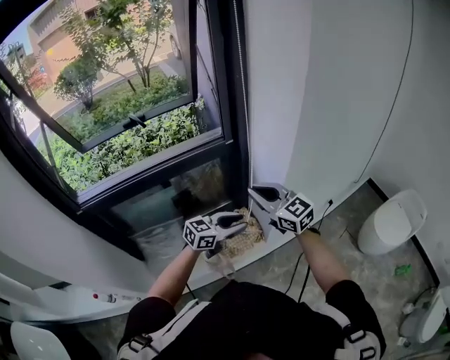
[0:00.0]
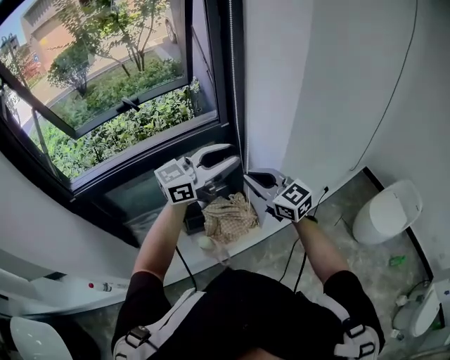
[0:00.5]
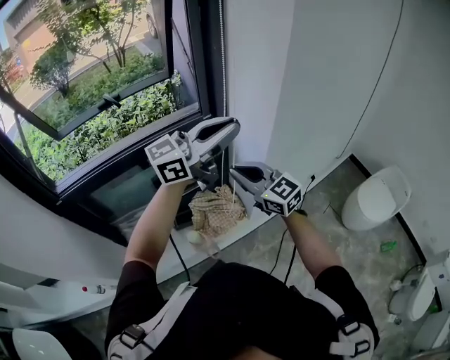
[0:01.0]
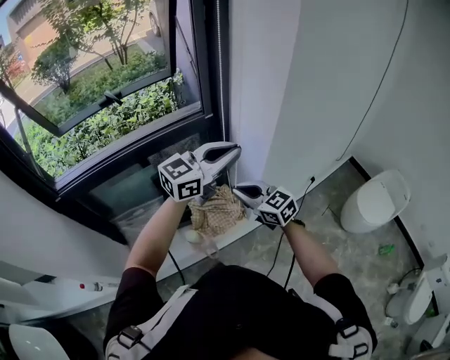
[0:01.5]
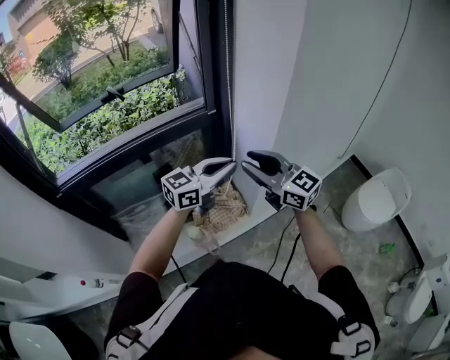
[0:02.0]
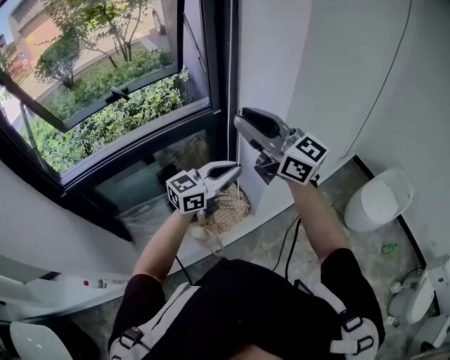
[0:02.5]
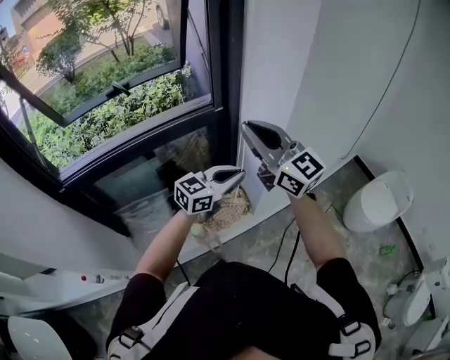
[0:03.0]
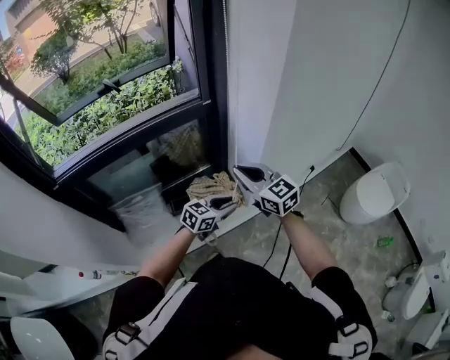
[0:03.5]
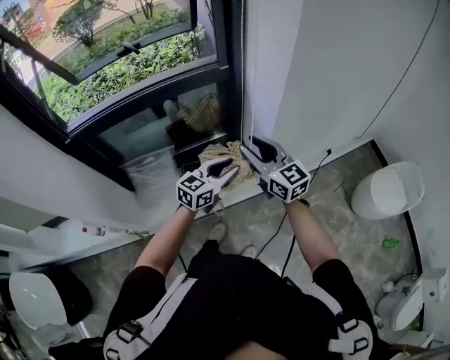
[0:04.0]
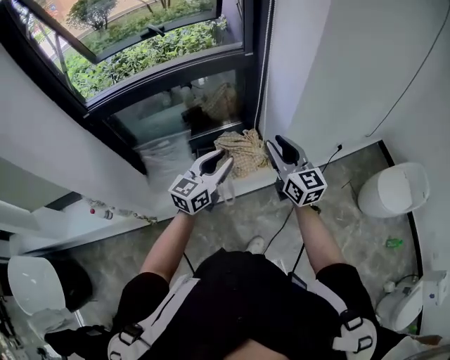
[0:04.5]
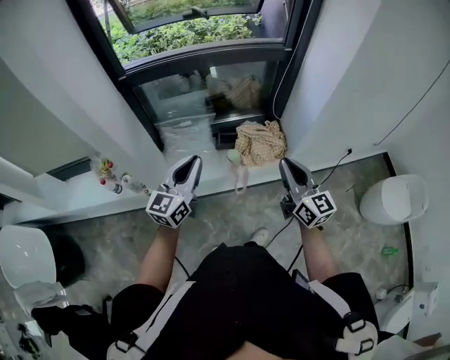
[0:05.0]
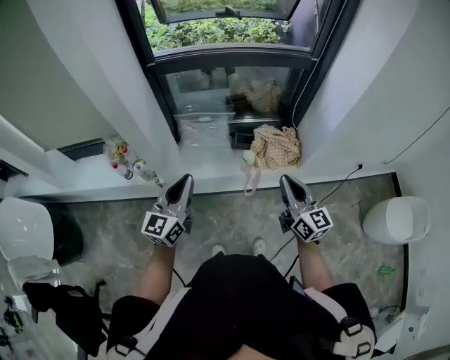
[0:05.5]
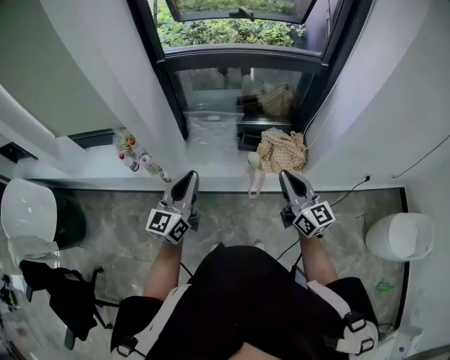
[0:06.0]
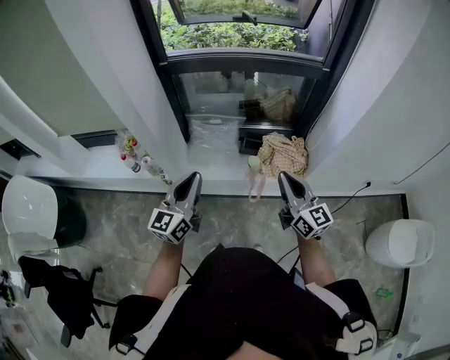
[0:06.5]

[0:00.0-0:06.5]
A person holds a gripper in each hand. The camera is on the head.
0:00.0 to 0:02.0: The left gripper moves upward, approximately 15 cm, and closes, while the right gripper moves roughly 10 cm downward and comes back, and opens up.
0:02.0 to 0:04.5: The right gripper moves downward and backward, roughly 15 cm, and closes and opens again; the left gripper is displaced backward, downward and to the left by some 20 cm, swivels roughly 30 degrees, and opens its fingers.
0:04.5 to 0:06.5: The left gripper shifts by about 30 cm, changes its angle by about 40 degrees, and closes. The right gripper changes place by some 20 cm, rotates some 20 degrees, and closes.

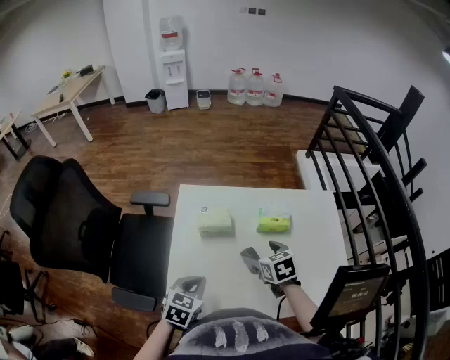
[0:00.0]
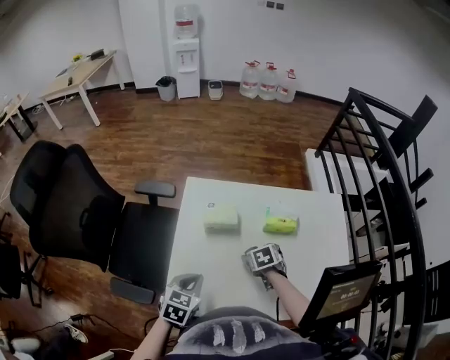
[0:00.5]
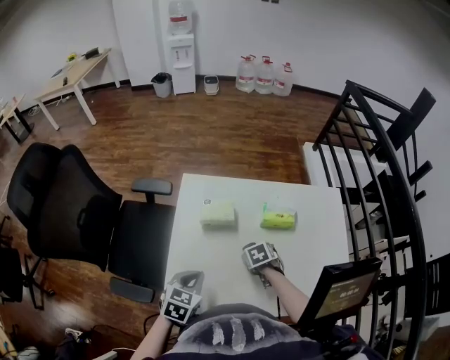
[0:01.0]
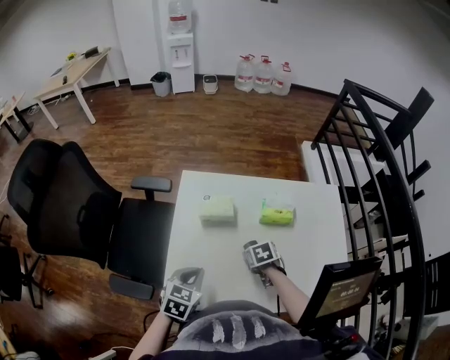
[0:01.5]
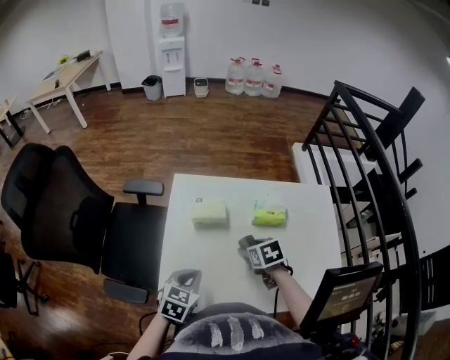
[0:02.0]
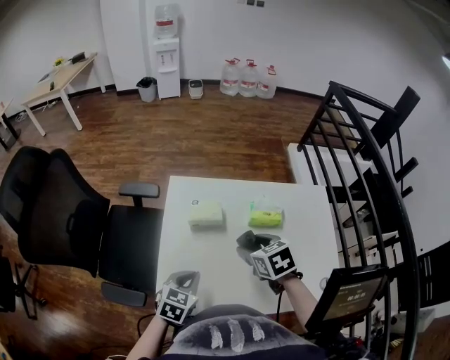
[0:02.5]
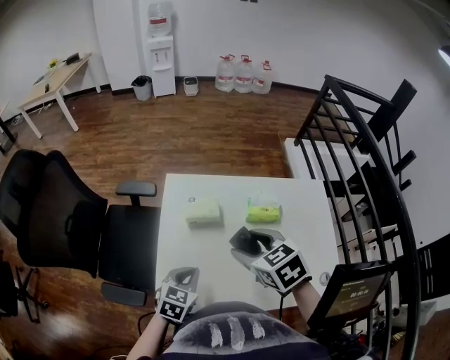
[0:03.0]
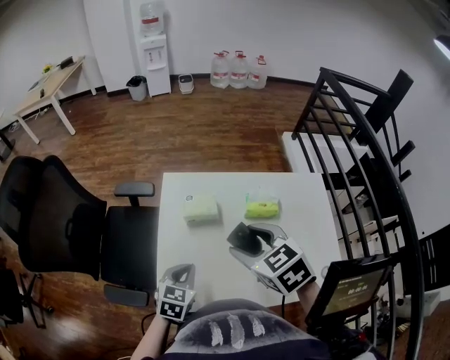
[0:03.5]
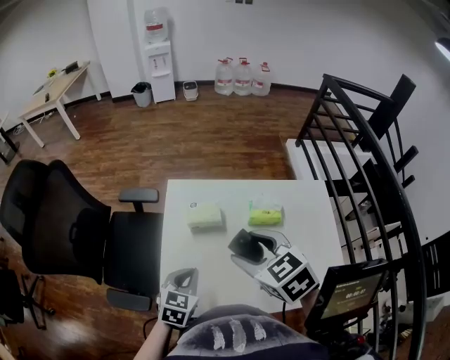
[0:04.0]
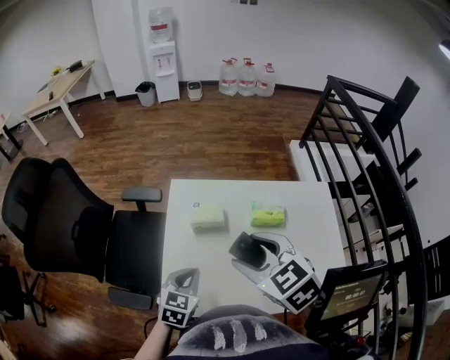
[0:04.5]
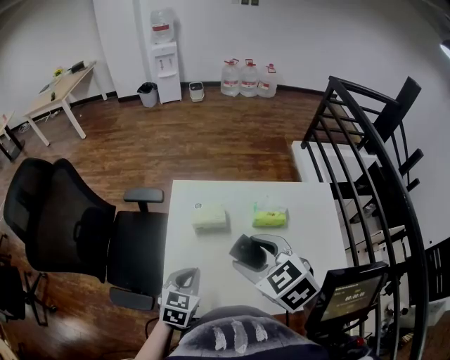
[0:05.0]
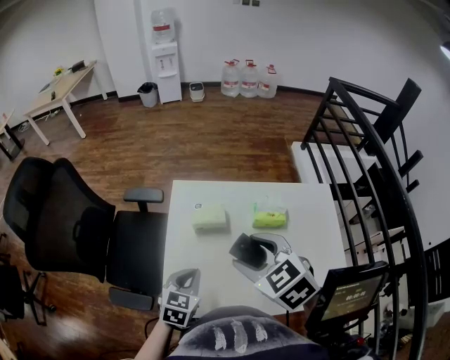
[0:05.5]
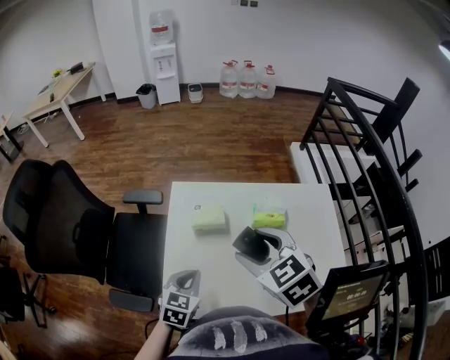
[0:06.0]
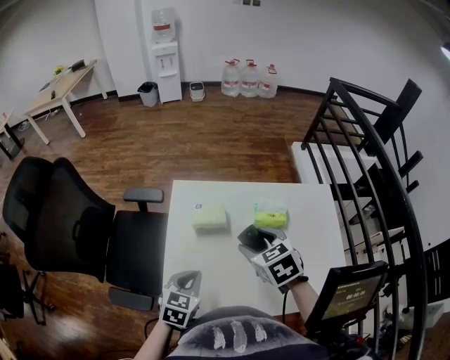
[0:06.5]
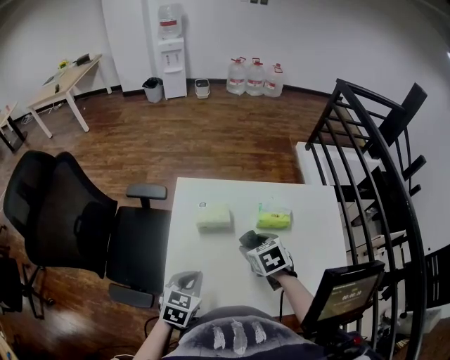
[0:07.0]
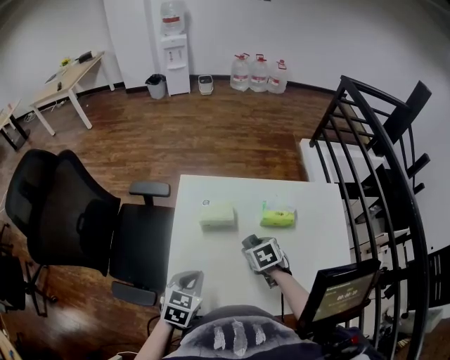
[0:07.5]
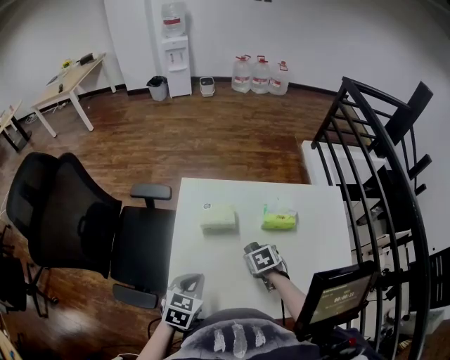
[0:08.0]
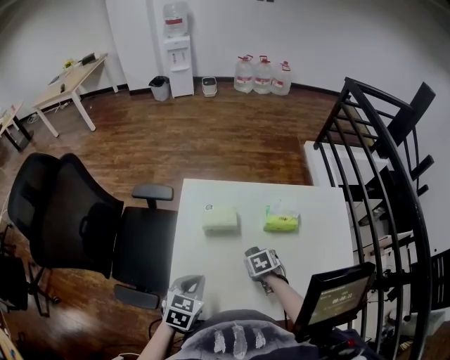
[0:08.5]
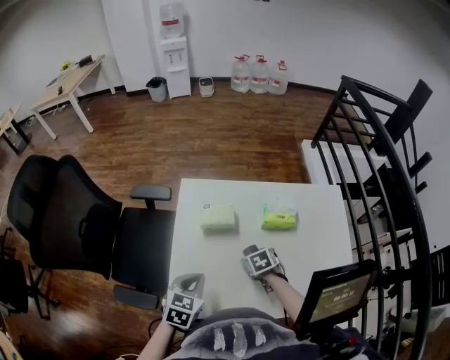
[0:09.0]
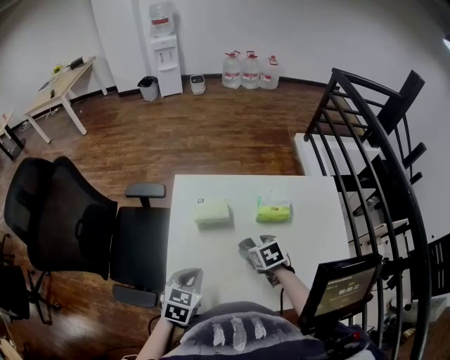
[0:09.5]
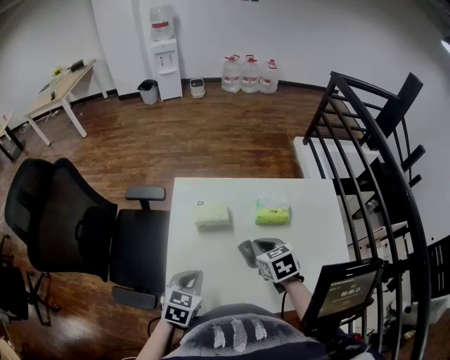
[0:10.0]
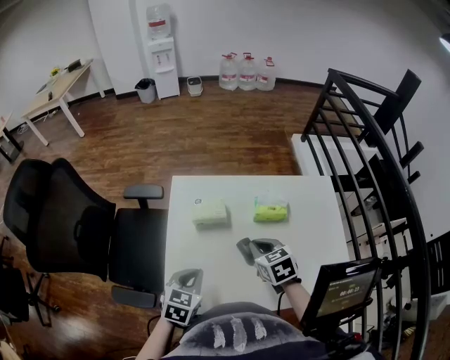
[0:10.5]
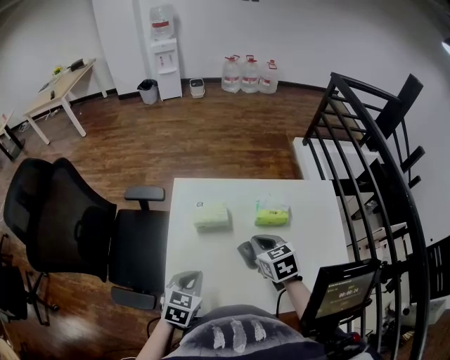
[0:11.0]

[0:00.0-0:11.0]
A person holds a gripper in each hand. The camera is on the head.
0:00.0 to 0:02.0: The right gripper travels downward and back again, about 15 cm each way.
0:02.0 to 0:03.5: The right gripper goes approximately 20 cm upward, and rotates some 30 degrees.
0:03.5 to 0:05.5: The grippers move only a little.
0:05.5 to 0:07.5: The right gripper is displaced downward by some 25 cm, and changes its angle by some 30 degrees.
0:07.5 to 0:09.0: The right gripper travels downward by roughly 5 cm.
0:09.0 to 0:11.0: The right gripper is displaced upward by approximately 15 cm, swivels approximately 30 degrees, and closes its fingers.

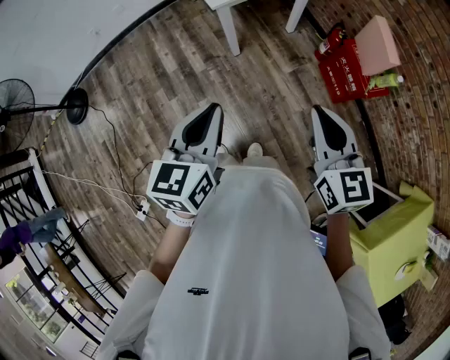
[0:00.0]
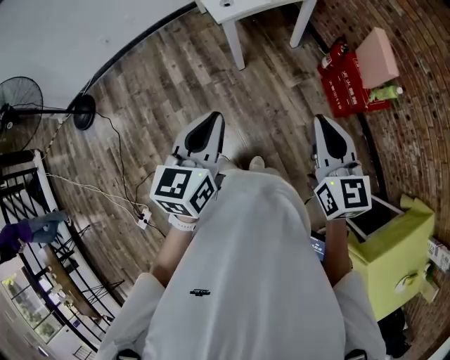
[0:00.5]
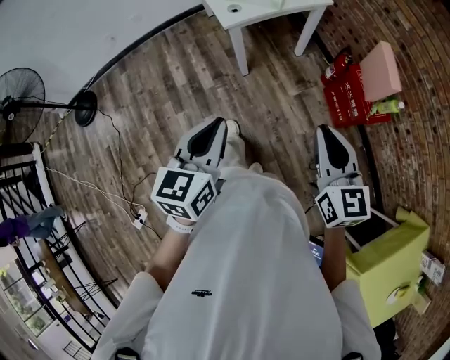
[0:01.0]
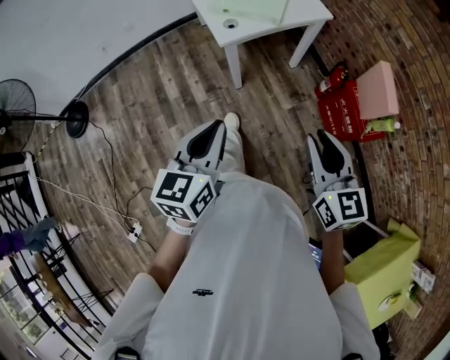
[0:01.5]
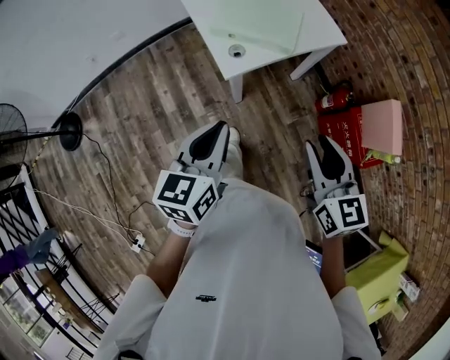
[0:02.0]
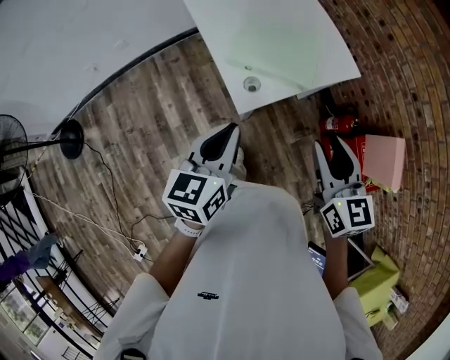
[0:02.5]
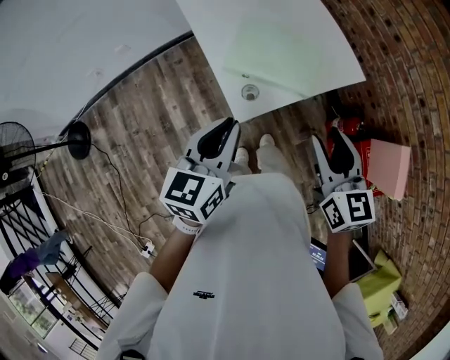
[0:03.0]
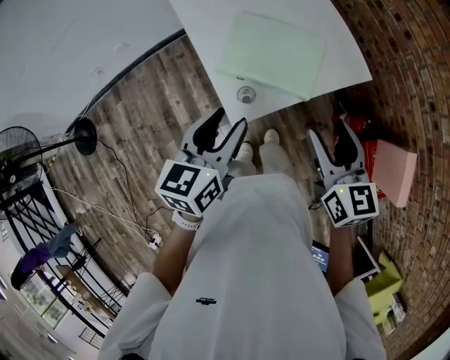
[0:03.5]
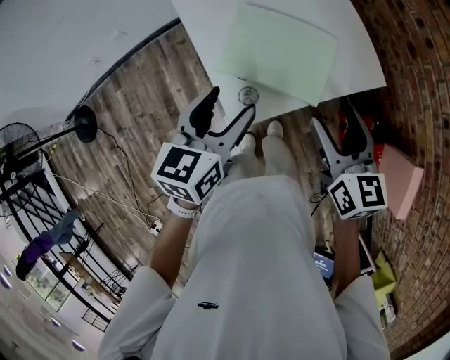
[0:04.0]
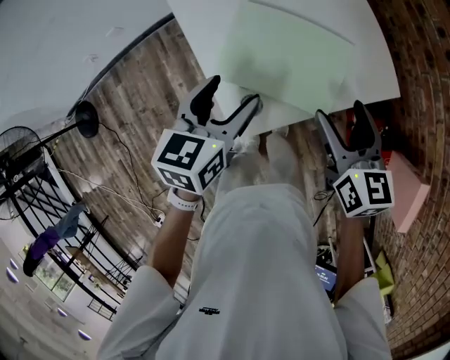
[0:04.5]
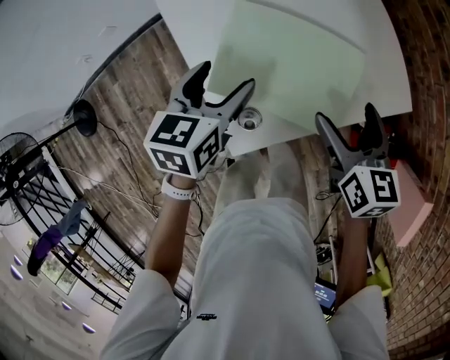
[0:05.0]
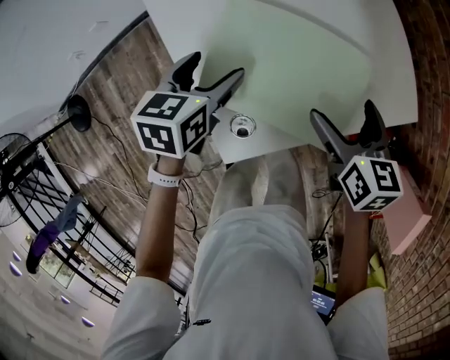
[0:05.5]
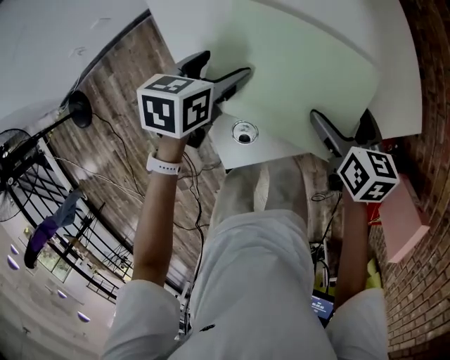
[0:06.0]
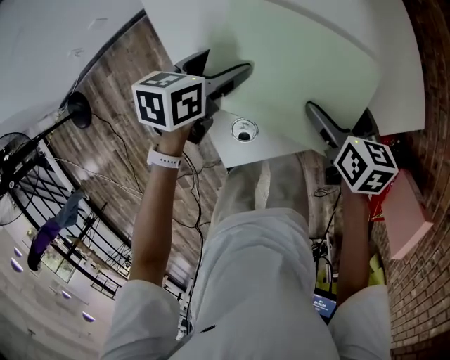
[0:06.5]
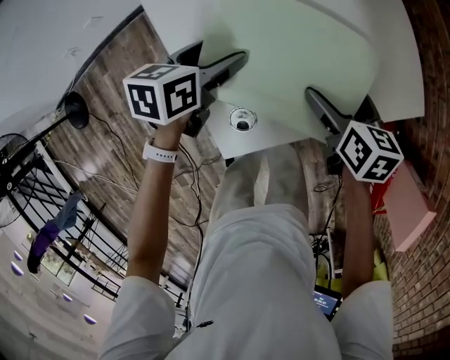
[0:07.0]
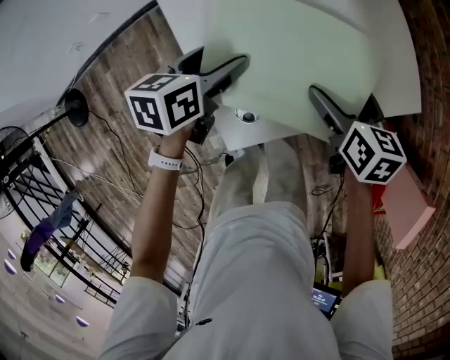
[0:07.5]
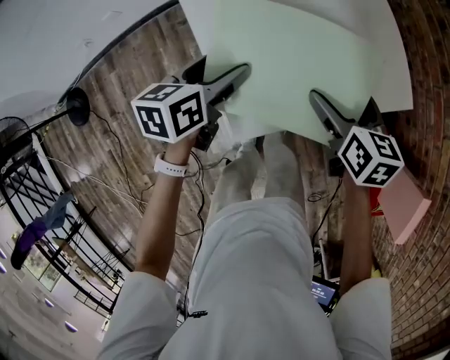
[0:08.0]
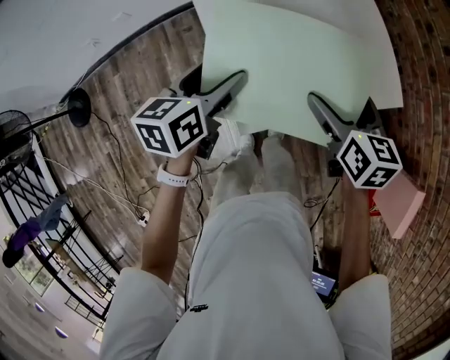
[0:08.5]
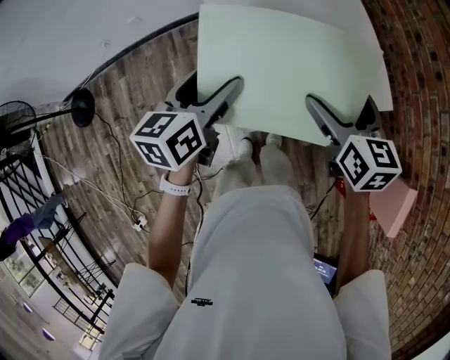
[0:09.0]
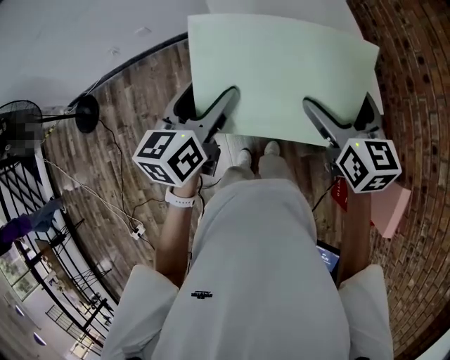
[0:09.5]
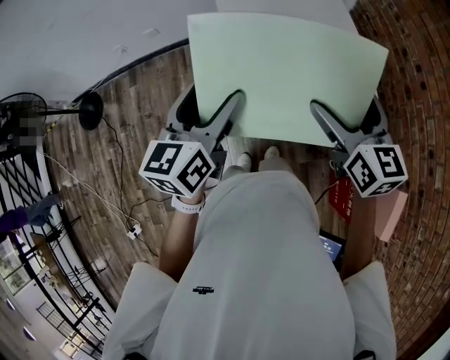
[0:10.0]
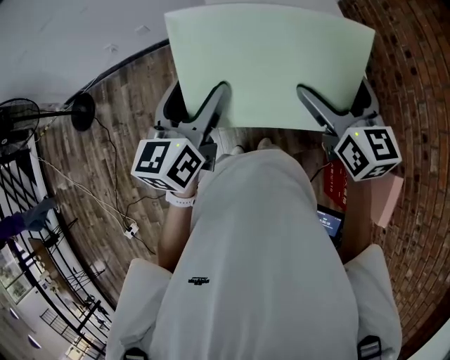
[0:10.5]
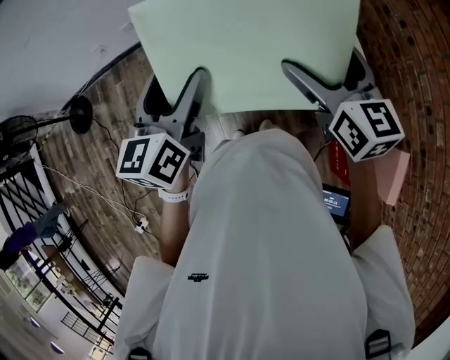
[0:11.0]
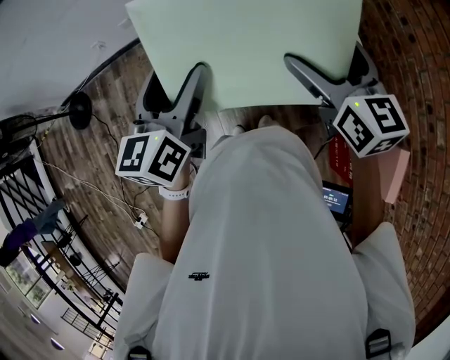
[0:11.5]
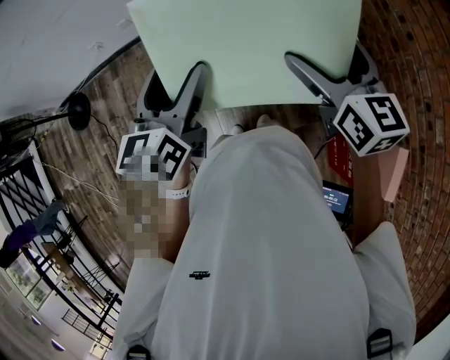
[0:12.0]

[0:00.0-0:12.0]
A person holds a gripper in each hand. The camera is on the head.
0:00.0 to 0:02.0: The two grippers go roughly 30 cm forward.
0:02.0 to 0:04.0: Both grippers move forward, roughly 30 cm. The left gripper opens up. The right gripper opens up.
0:04.0 to 0:06.0: The two grippers go approximately 25 cm downward and forward. The right gripper turns by about 30 degrees, and opens its fingers. The left gripper changes its angle by about 30 degrees.
0:06.0 to 0:08.0: The right gripper is displaced upward by about 10 cm. Meanwhile the left gripper heads upward and backward, covering about 10 cm.
0:08.0 to 0:10.0: The right gripper moves upward, about 25 cm, and rotates some 30 degrees. The left gripper shifts approximately 30 cm upward and backward, and changes its angle by approximately 30 degrees.
0:10.0 to 0:12.0: There are only small adjustments of the grippers.
